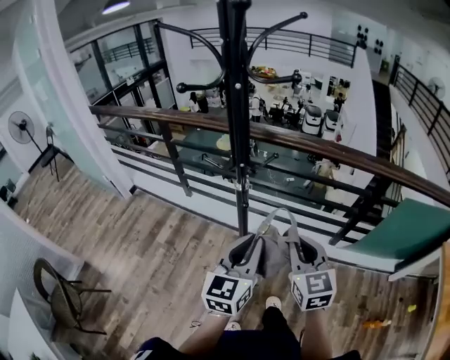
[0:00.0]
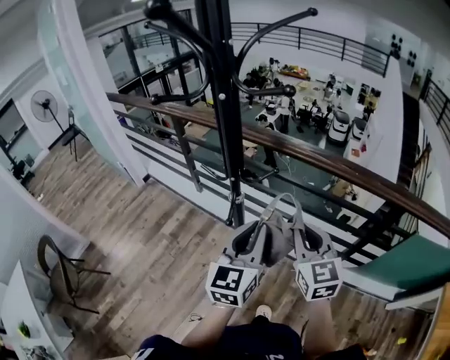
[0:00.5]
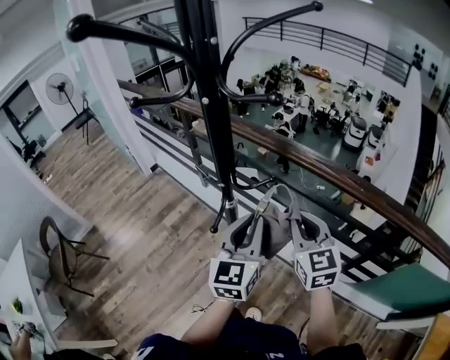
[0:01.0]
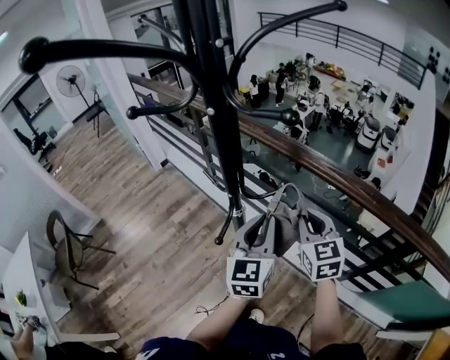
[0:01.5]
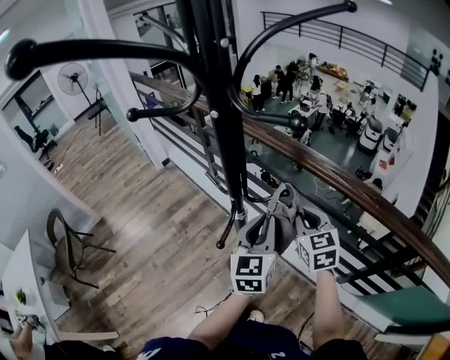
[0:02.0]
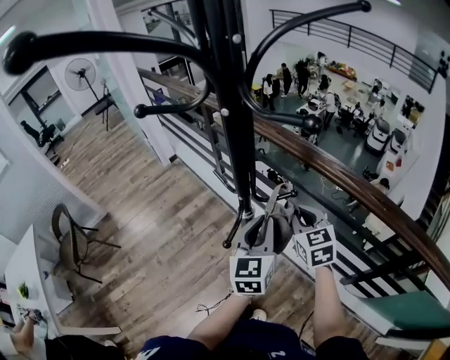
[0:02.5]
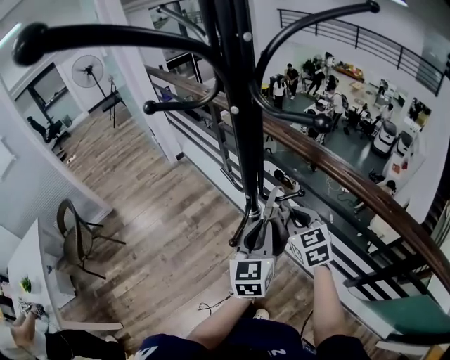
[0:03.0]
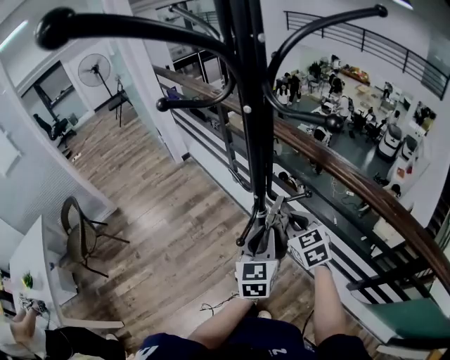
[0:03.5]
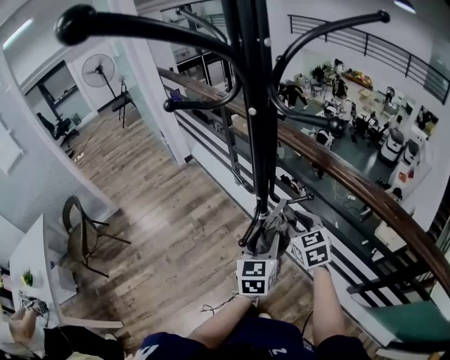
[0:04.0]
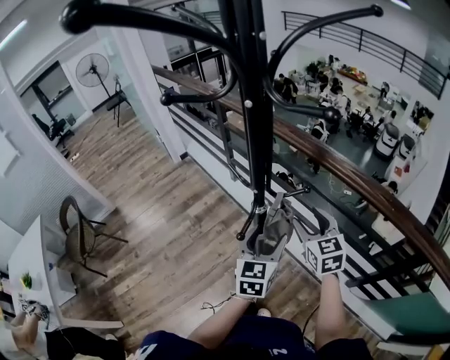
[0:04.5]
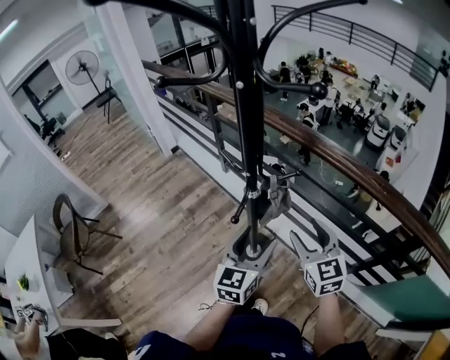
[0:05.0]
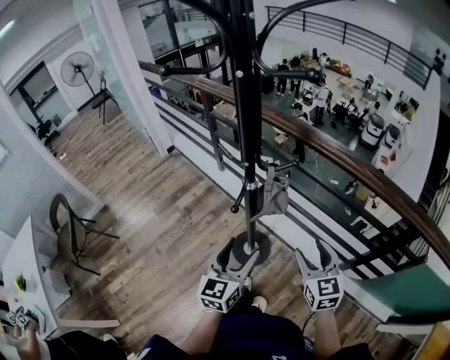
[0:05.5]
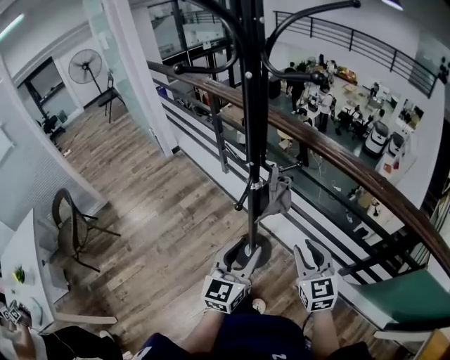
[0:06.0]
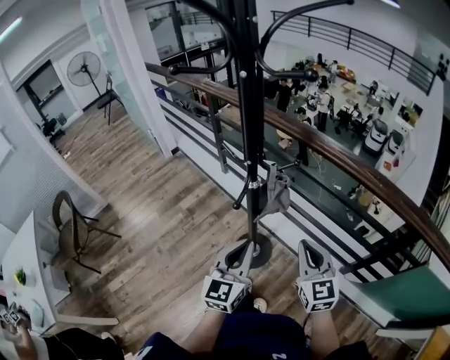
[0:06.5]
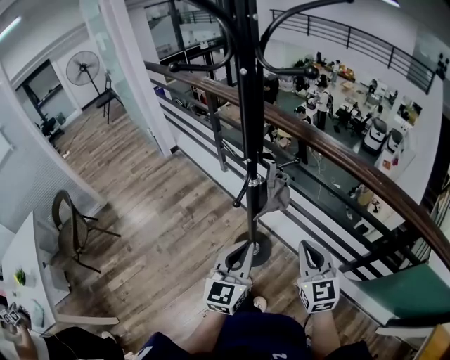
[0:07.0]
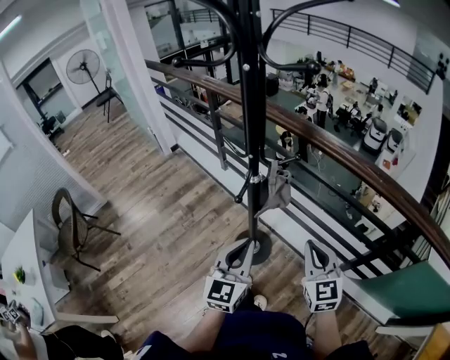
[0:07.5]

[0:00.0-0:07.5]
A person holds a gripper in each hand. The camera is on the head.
0:00.0 to 0:02.0: The left gripper changes place by some 25 cm, and swivels roughly 30 degrees; the right gripper changes place by some 30 cm, and turns by some 20 degrees.
0:02.0 to 0:04.0: The left gripper moves downward and to the left, roughly 10 cm, and opens up. The right gripper travels to the left and downward by approximately 10 cm, and opens its fingers.
0:04.0 to 0:05.5: Both grippers move backward, about 15 cm. The right gripper opens; the left gripper opens its fingers.
0:05.5 to 0:07.5: The right gripper closes its fingers. The left gripper closes.

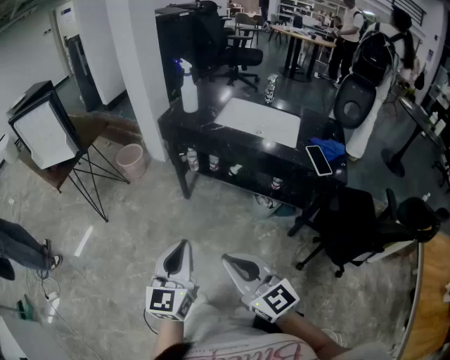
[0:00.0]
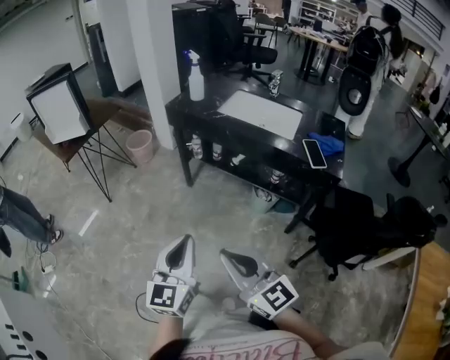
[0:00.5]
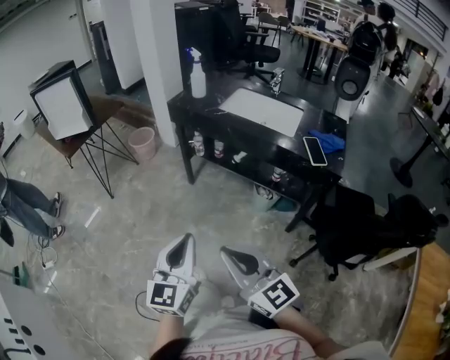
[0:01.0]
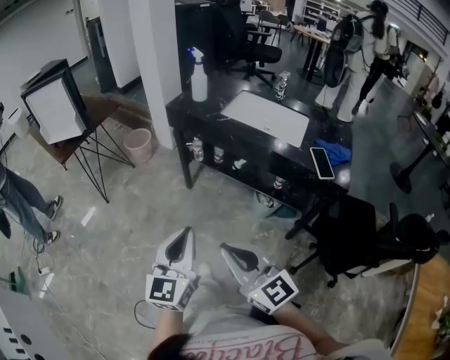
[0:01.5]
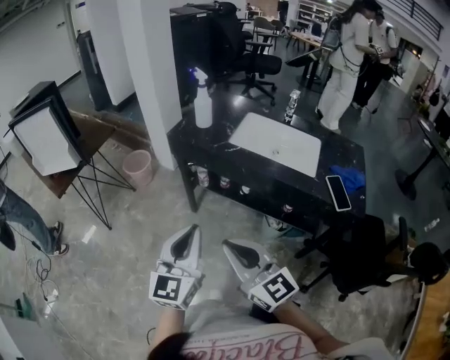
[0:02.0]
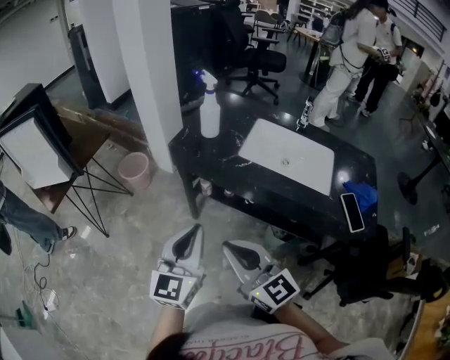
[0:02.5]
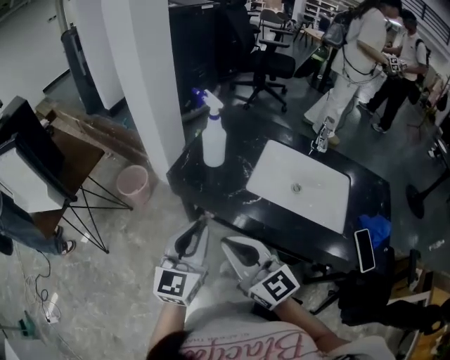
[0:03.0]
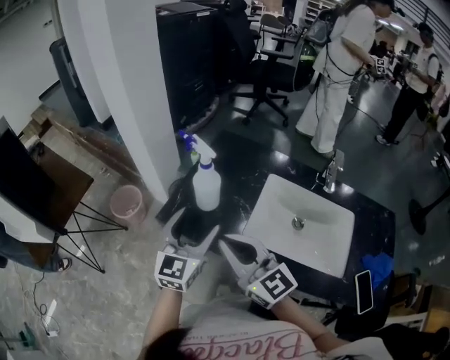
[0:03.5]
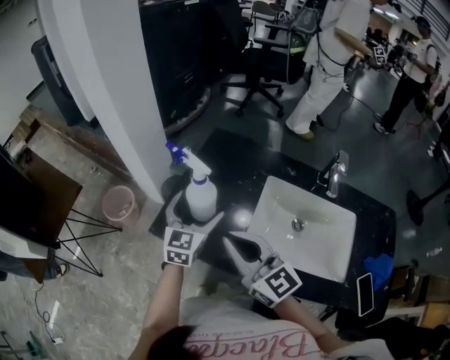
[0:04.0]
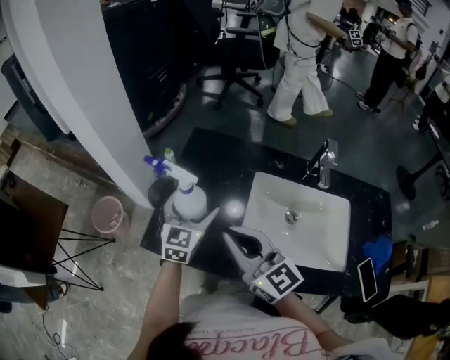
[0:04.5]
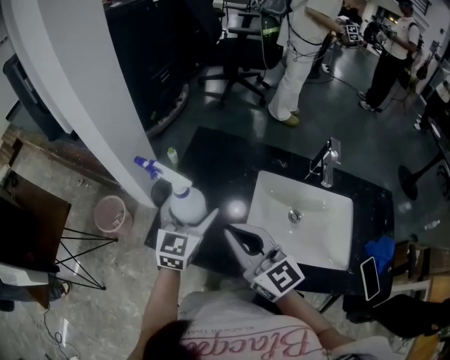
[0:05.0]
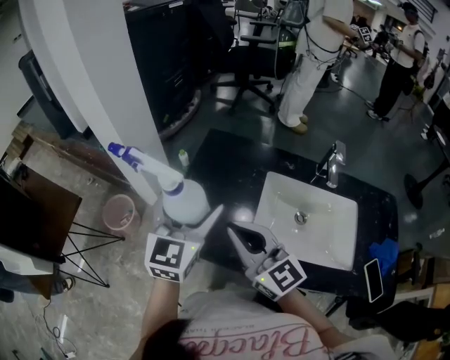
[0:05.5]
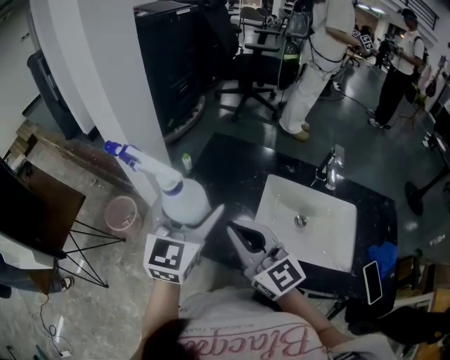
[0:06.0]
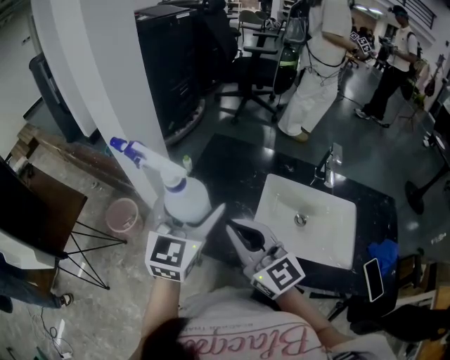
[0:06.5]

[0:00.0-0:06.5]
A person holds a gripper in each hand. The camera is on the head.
0:00.0 to 0:02.0: The grippers both shift forward by some 15 cm.
0:02.0 to 0:04.5: The pair of grippers is taken forward, some 50 cm. The left gripper swivels some 20 degrees, and opens its fingers.
0:04.5 to 0:06.5: The right gripper changes place by some 5 cm. The left gripper is displaced upward and backward by roughly 20 cm.

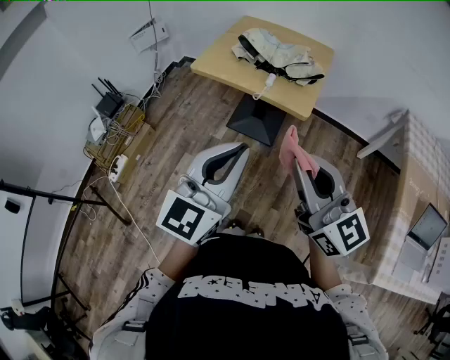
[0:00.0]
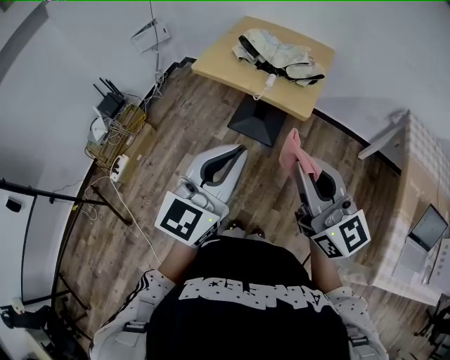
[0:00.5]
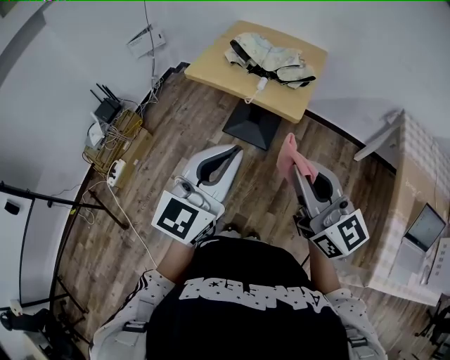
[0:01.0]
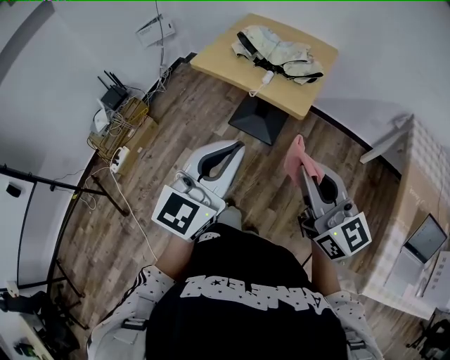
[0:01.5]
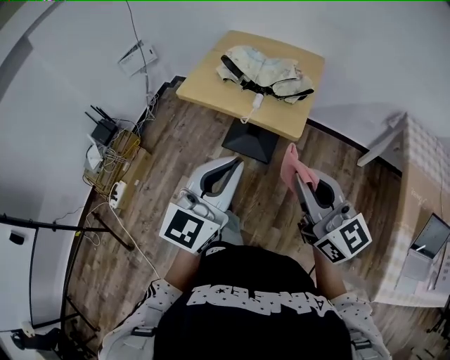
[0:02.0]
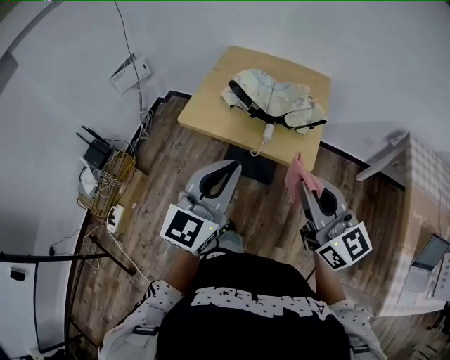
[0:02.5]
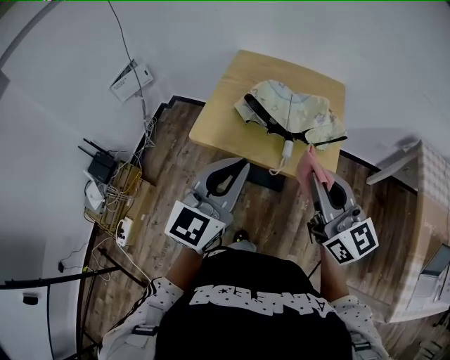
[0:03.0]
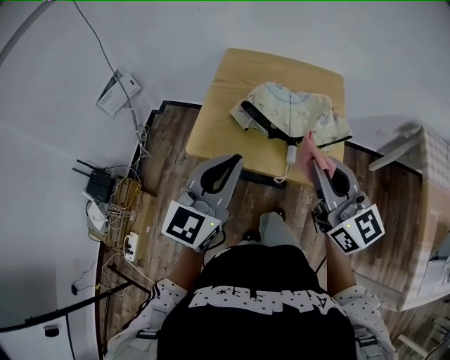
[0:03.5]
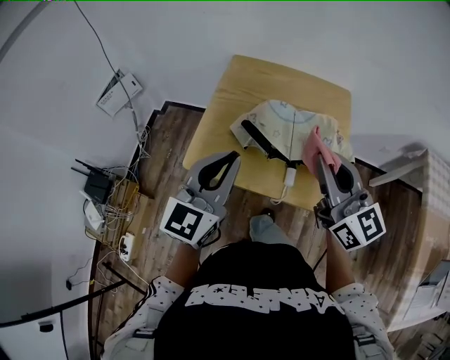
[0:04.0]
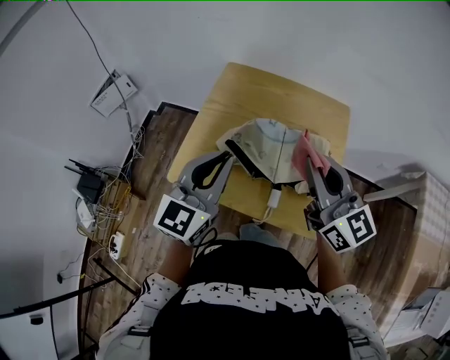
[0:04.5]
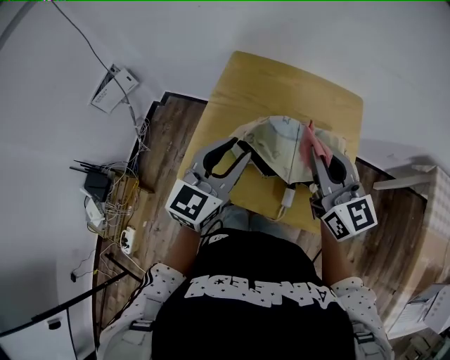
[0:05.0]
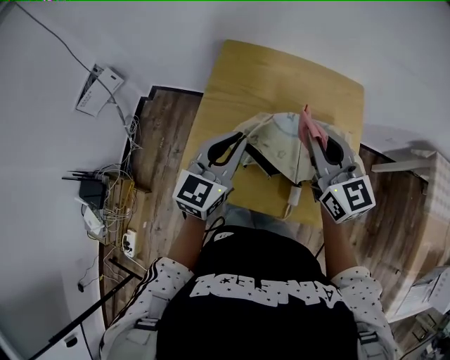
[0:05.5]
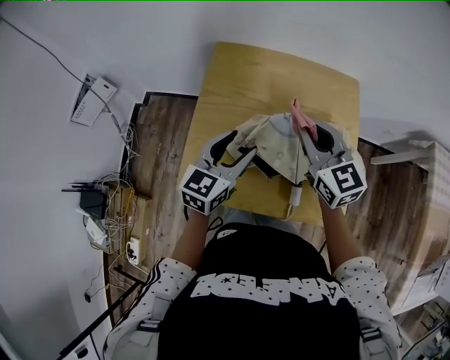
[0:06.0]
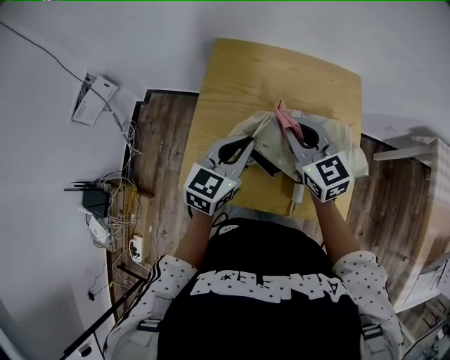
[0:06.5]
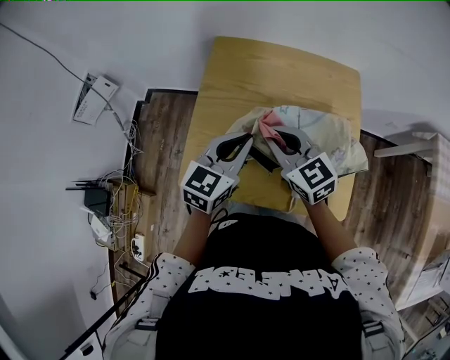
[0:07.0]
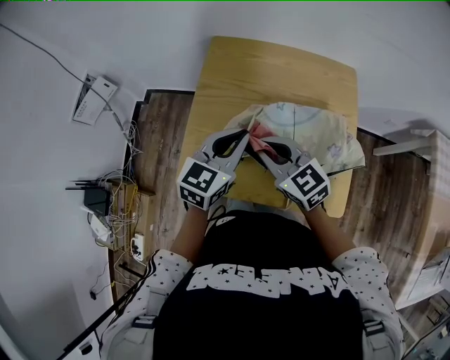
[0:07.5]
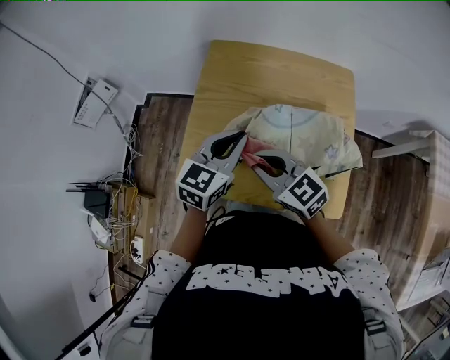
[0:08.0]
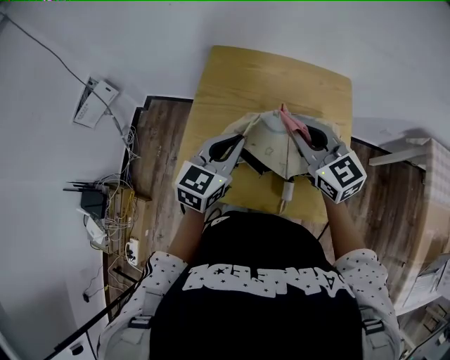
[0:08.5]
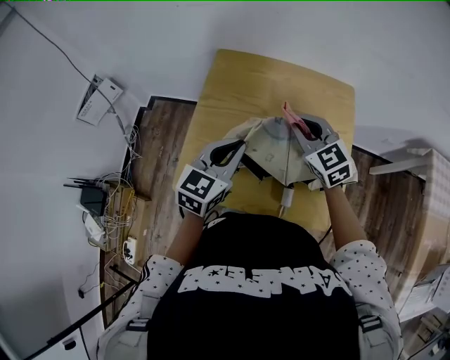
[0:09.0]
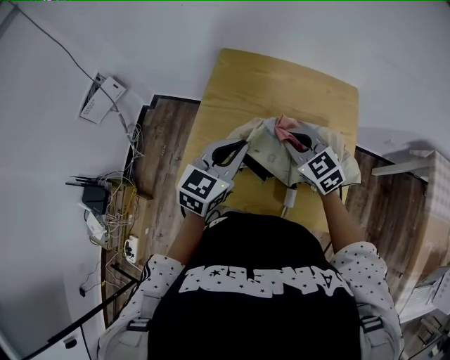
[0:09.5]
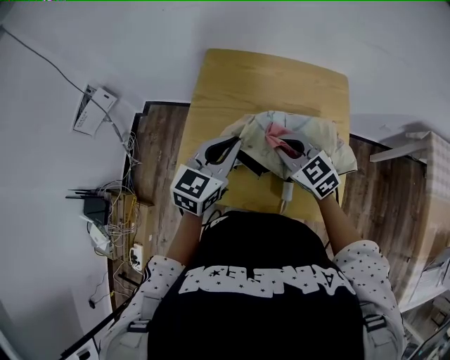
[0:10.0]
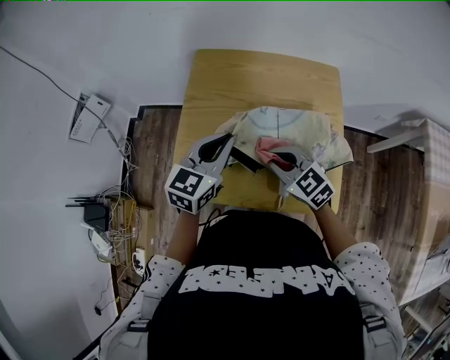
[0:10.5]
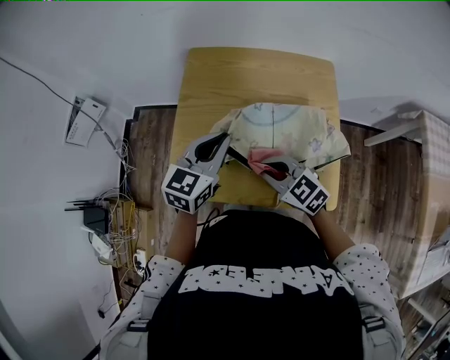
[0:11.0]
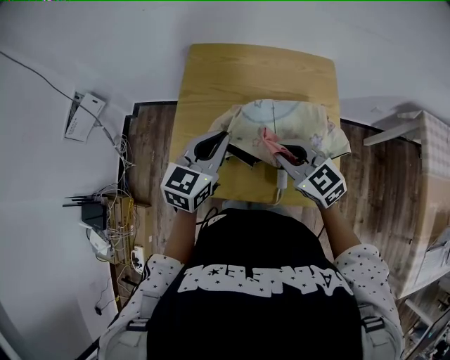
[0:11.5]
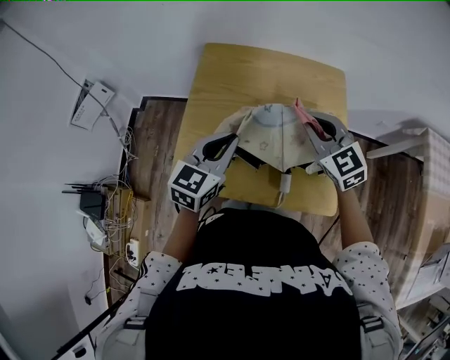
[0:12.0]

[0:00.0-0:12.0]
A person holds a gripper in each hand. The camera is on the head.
0:00.0 to 0:02.0: The left gripper goes approximately 10 cm forward. Meanwhile the right gripper moves forward and to the right, approximately 10 cm.
0:02.0 to 0:04.0: The right gripper heads forward, covering approximately 35 cm, while the left gripper is displaced forward and to the left by roughly 40 cm.
0:04.0 to 0:06.0: Both grippers travel together forward and downward, roughly 25 cm. The left gripper turns by approximately 20 degrees, and opens up.
0:06.0 to 0:08.0: The right gripper travels backward, to the left and downward by about 15 cm, and swivels roughly 30 degrees. Meanwhile the left gripper closes.
0:08.0 to 0:10.0: The right gripper goes roughly 10 cm to the right and forward.
0:10.0 to 0:12.0: The right gripper travels to the right and upward by approximately 10 cm.

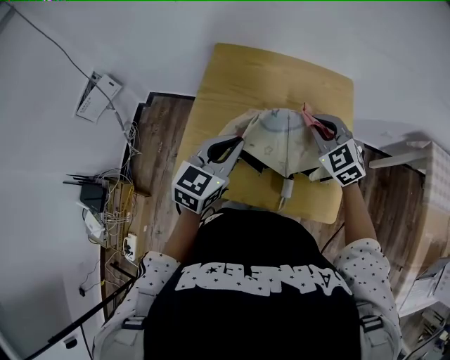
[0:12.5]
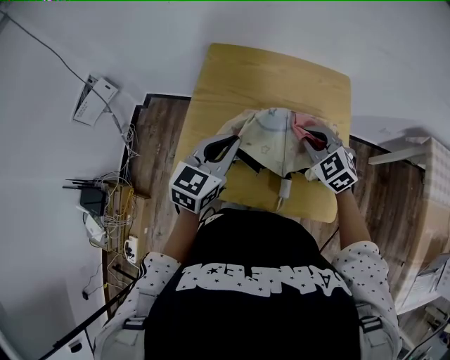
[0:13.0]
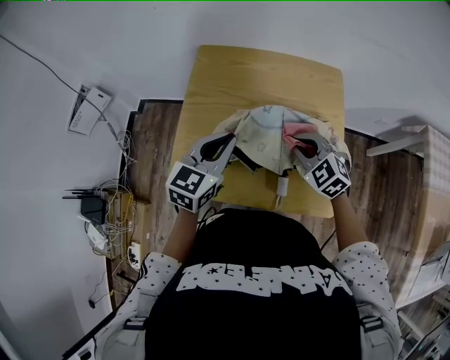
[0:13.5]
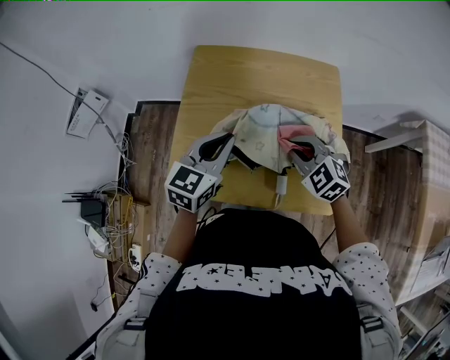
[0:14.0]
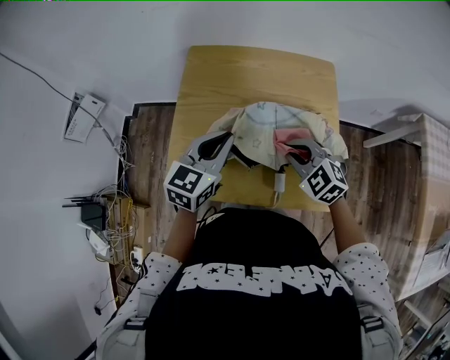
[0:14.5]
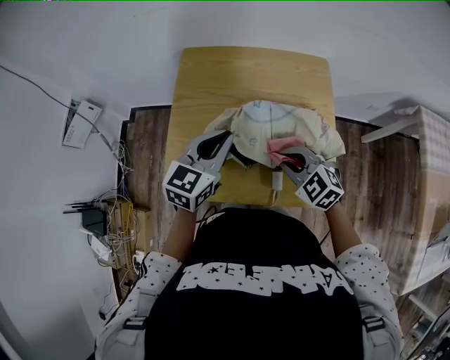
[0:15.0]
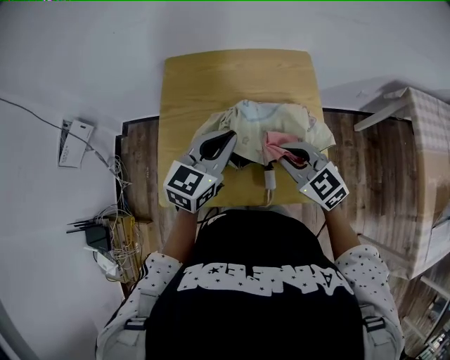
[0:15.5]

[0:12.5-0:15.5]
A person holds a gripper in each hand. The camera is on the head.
0:12.5 to 0:14.0: The right gripper goes about 10 cm backward.
0:14.0 to 0:15.5: The left gripper is displaced to the right by roughly 5 cm. The right gripper moves roughly 5 cm, and rotates roughly 30 degrees.
